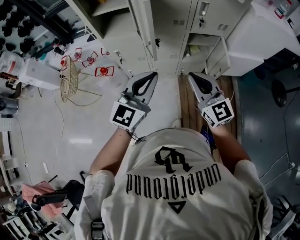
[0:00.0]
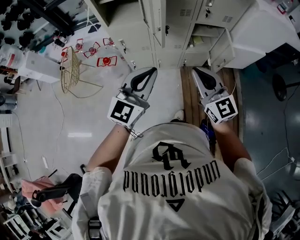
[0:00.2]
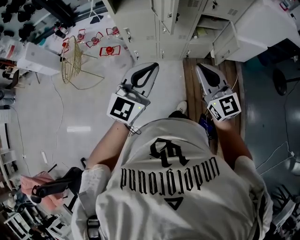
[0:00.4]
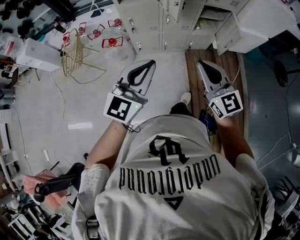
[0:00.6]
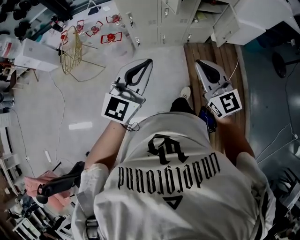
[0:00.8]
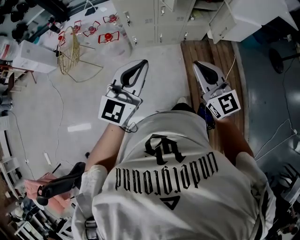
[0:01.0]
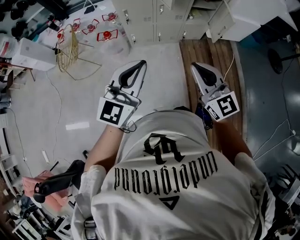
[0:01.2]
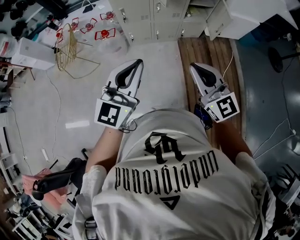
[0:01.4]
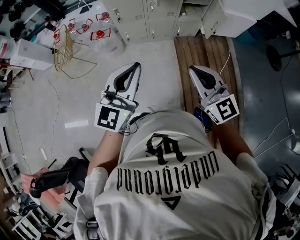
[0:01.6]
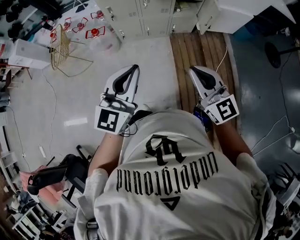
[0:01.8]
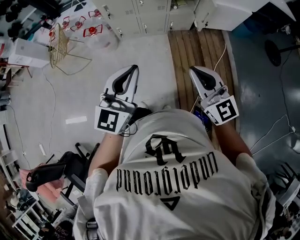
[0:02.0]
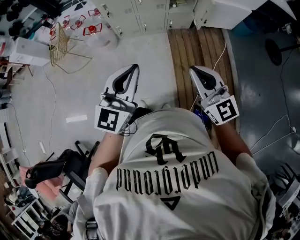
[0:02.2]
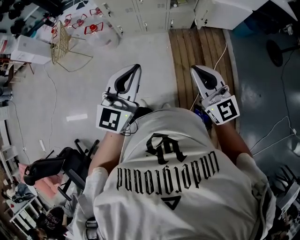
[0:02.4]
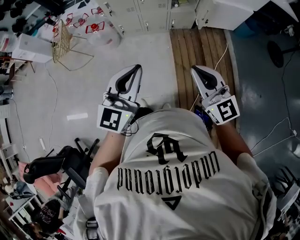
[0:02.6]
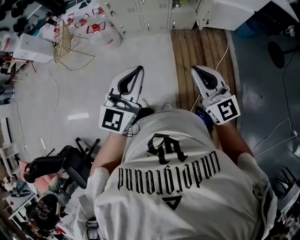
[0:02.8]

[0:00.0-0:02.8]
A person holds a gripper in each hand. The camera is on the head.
0:00.0 to 0:01.4: The two grippers go approximately 30 cm backward and to the left.
0:01.4 to 0:02.8: The two grippers go roughly 20 cm to the right and backward.

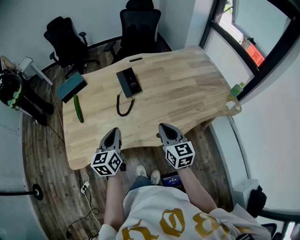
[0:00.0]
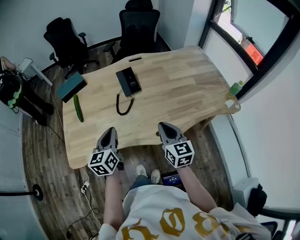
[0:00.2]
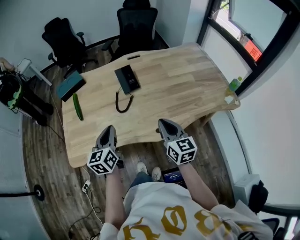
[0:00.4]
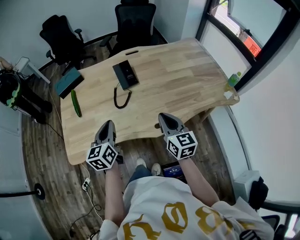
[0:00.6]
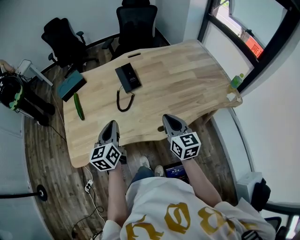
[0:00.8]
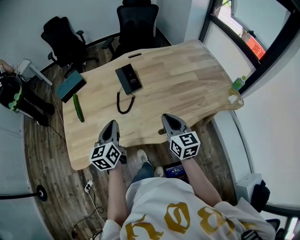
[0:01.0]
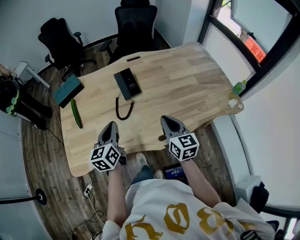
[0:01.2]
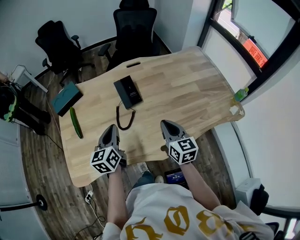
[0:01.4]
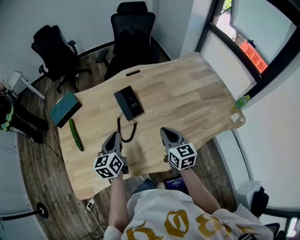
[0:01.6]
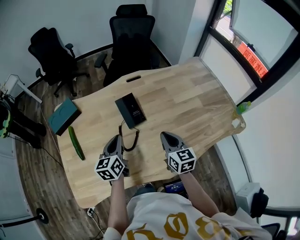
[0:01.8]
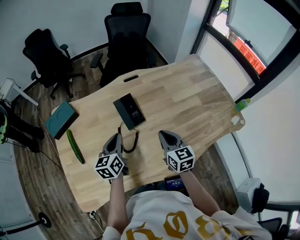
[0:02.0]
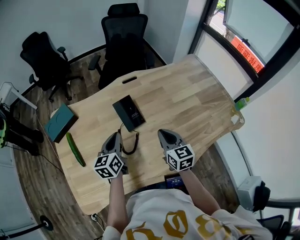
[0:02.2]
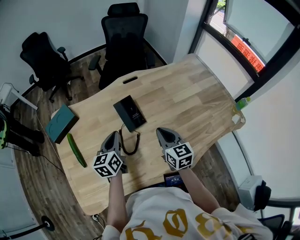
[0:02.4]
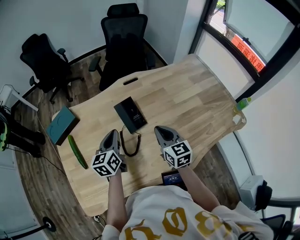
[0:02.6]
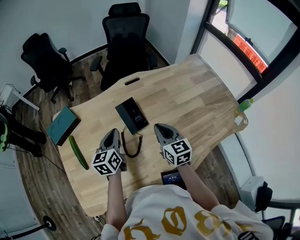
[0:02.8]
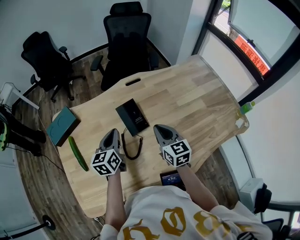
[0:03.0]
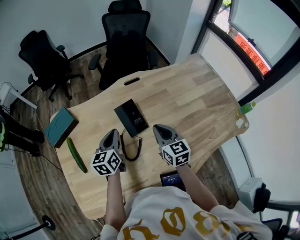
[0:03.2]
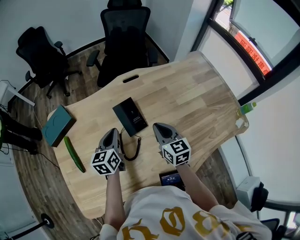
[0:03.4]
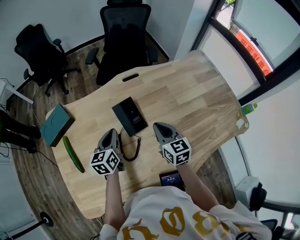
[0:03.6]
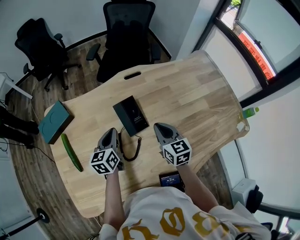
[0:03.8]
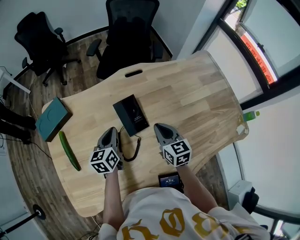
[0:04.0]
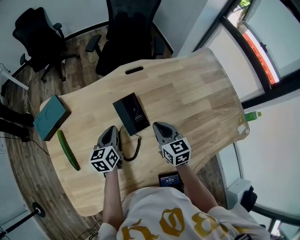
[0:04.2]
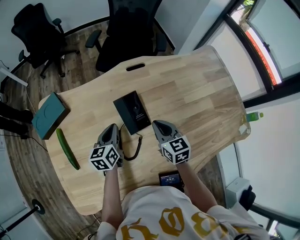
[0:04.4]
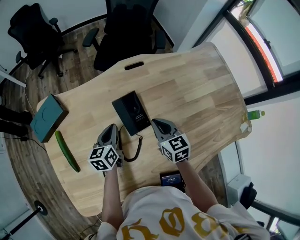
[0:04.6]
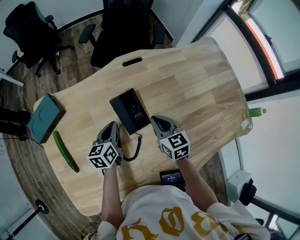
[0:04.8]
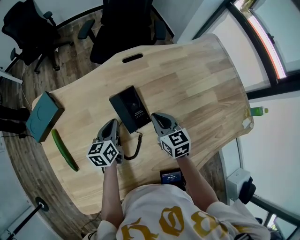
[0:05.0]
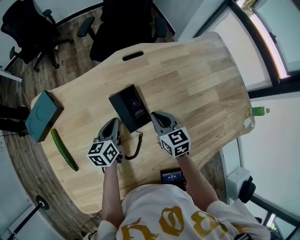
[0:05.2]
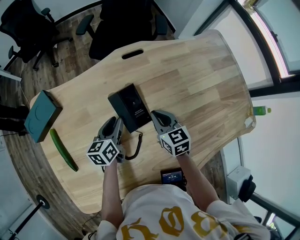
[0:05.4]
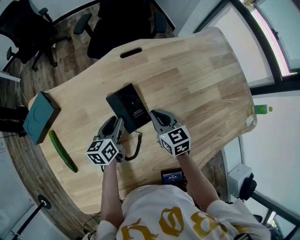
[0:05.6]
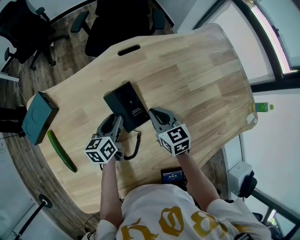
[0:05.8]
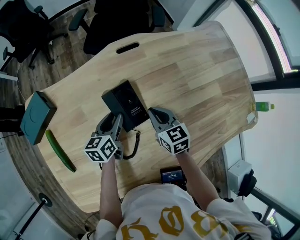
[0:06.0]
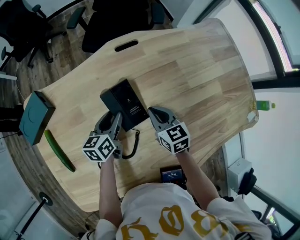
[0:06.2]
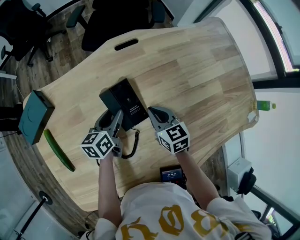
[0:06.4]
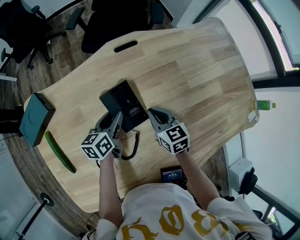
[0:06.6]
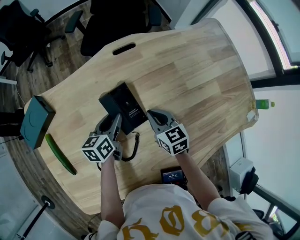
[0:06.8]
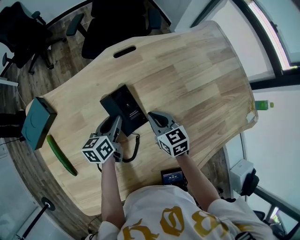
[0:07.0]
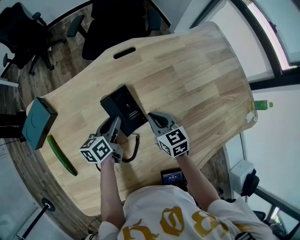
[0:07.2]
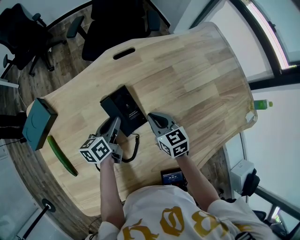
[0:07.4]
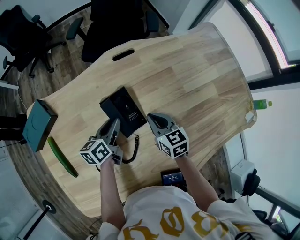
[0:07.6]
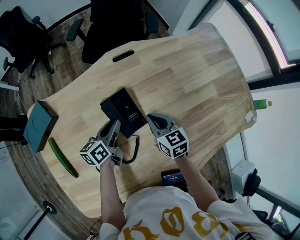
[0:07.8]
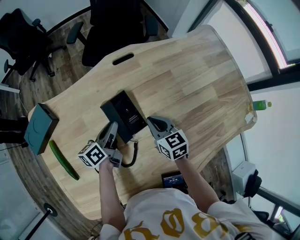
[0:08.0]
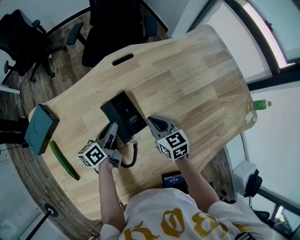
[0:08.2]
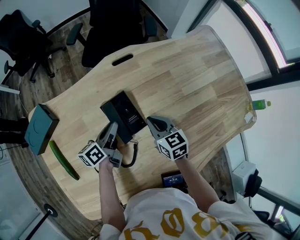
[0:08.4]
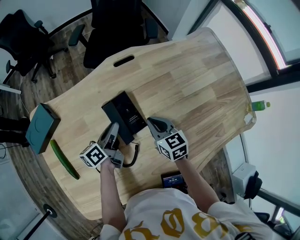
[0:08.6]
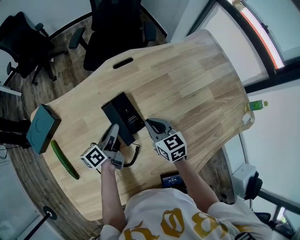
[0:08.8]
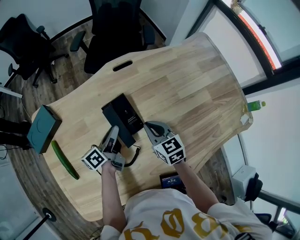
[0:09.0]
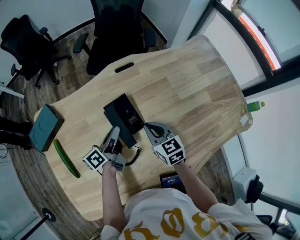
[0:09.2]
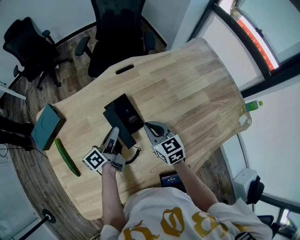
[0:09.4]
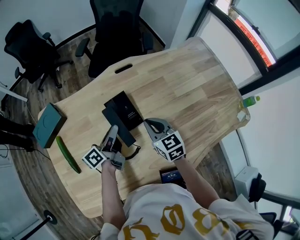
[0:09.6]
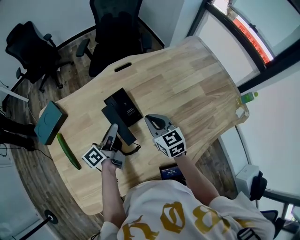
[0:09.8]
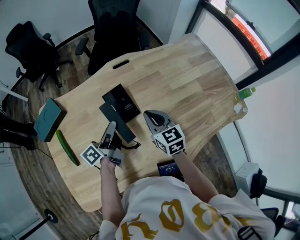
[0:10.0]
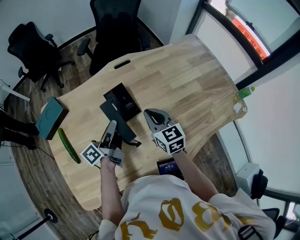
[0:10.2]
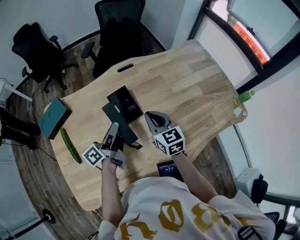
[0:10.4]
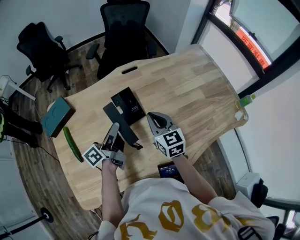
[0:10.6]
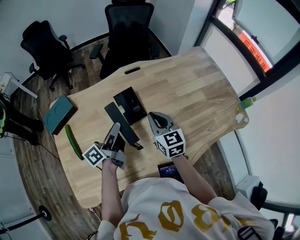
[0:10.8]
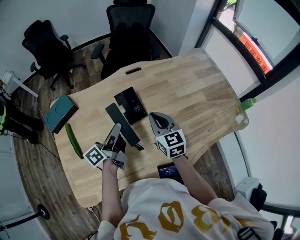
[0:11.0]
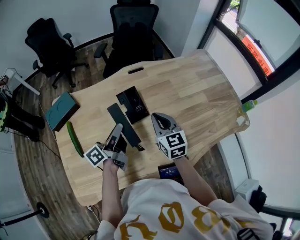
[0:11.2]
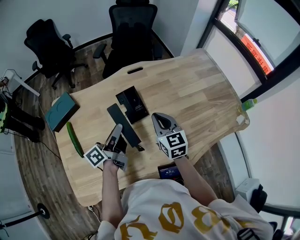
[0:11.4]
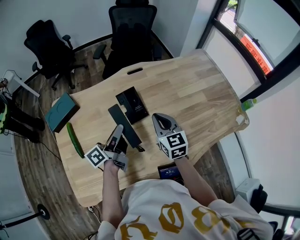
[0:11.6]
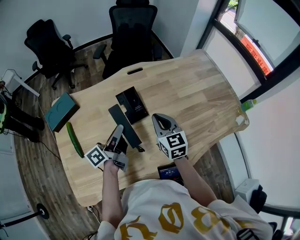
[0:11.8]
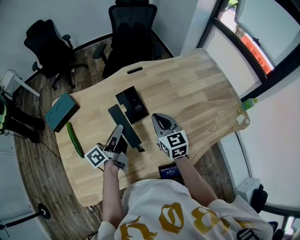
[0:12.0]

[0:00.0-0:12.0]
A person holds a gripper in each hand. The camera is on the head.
0:00.0 to 0:01.6: Both grippers travel together forward, about 15 cm.
0:01.6 to 0:03.0: The two grippers go about 10 cm forward.
0:03.0 to 0:04.4: The grippers both shift downward by roughly 10 cm.
0:04.4 to 0:06.0: Both grippers travel together downward, some 5 cm. The left gripper opens up.
0:06.0 to 0:07.6: There are only small adjustments of the grippers.
0:07.6 to 0:09.0: The left gripper swivels some 20 degrees.
0:09.0 to 0:10.4: The left gripper shifts approximately 10 cm upward and backward, while the right gripper travels upward by about 10 cm.
0:10.4 to 0:12.0: The grippers stay close to where they were, moving slightly.

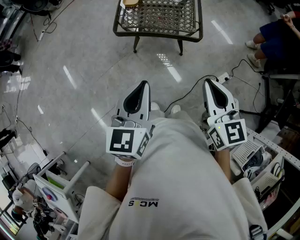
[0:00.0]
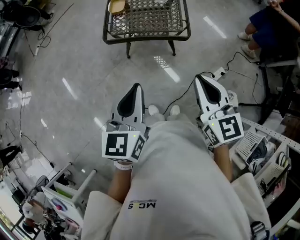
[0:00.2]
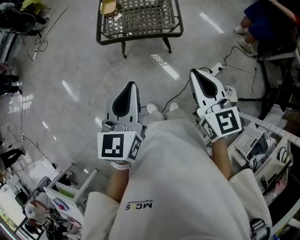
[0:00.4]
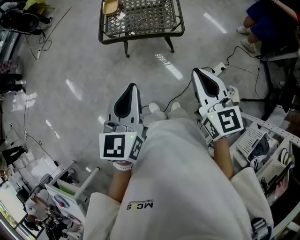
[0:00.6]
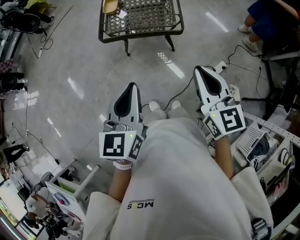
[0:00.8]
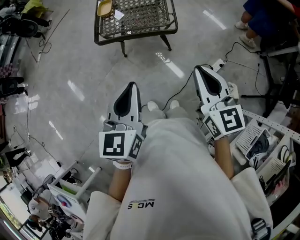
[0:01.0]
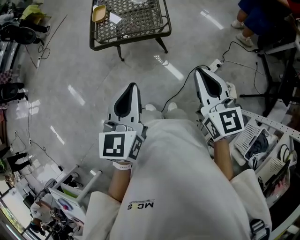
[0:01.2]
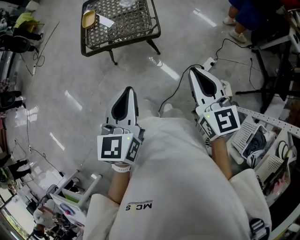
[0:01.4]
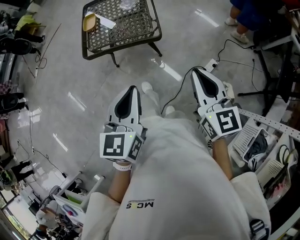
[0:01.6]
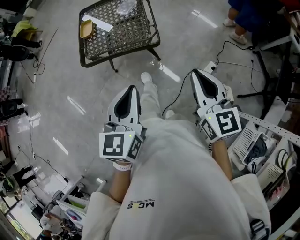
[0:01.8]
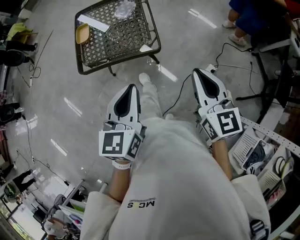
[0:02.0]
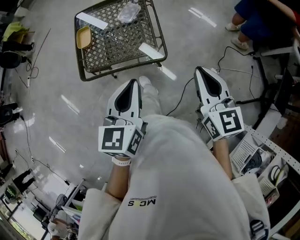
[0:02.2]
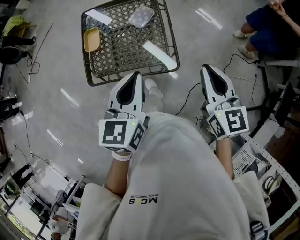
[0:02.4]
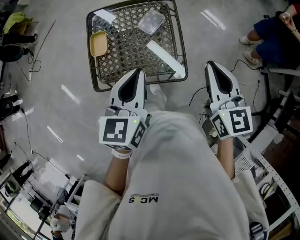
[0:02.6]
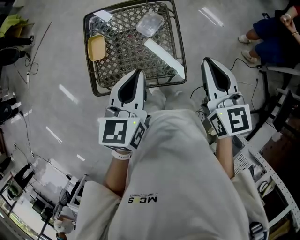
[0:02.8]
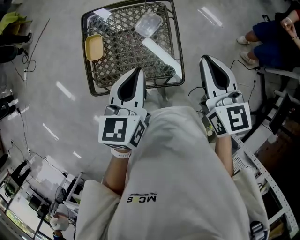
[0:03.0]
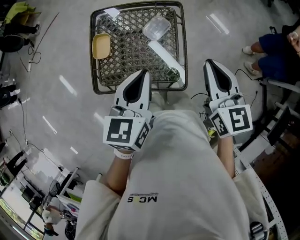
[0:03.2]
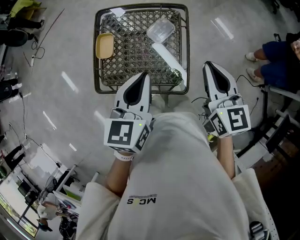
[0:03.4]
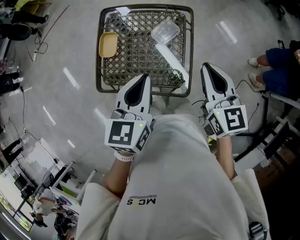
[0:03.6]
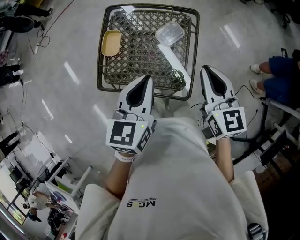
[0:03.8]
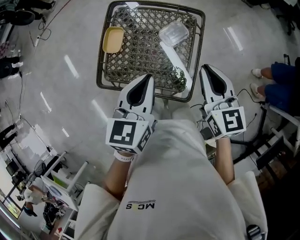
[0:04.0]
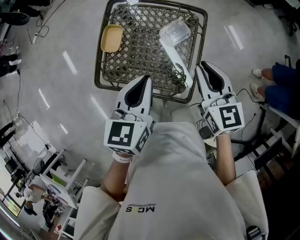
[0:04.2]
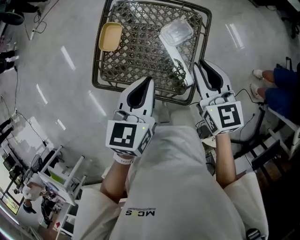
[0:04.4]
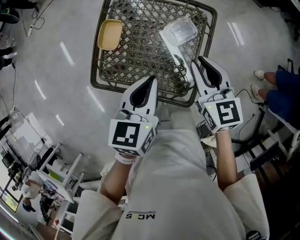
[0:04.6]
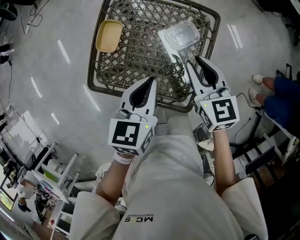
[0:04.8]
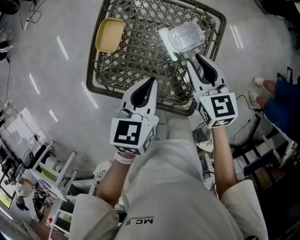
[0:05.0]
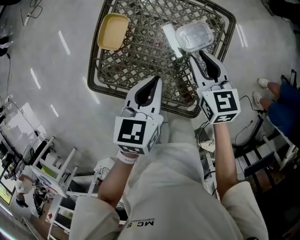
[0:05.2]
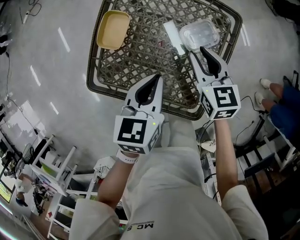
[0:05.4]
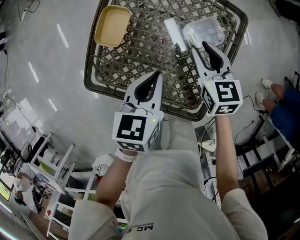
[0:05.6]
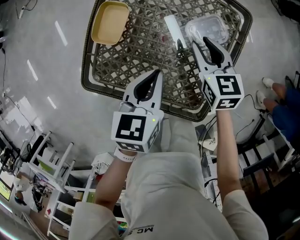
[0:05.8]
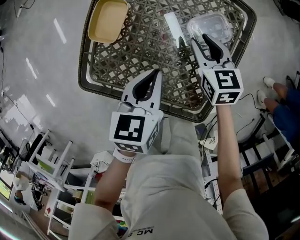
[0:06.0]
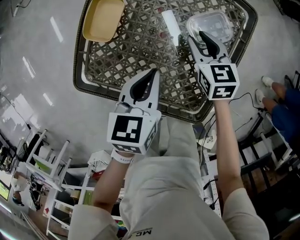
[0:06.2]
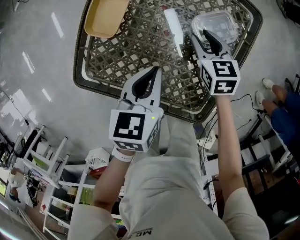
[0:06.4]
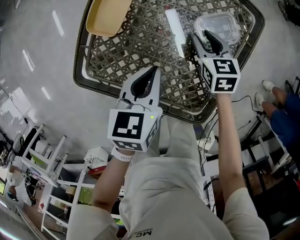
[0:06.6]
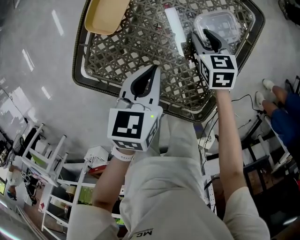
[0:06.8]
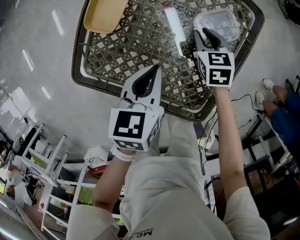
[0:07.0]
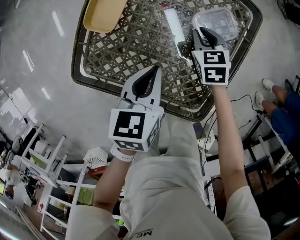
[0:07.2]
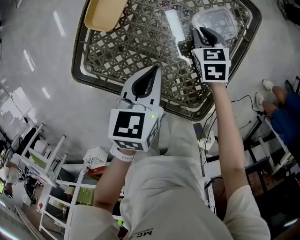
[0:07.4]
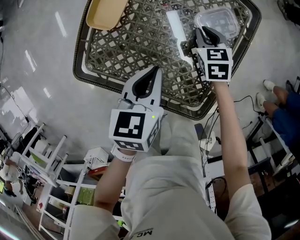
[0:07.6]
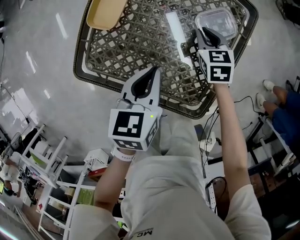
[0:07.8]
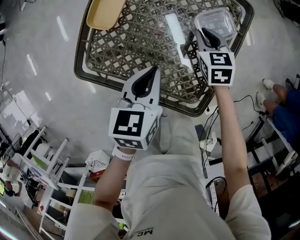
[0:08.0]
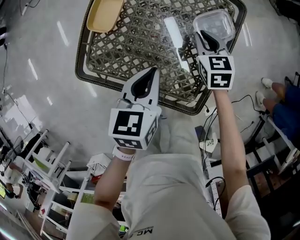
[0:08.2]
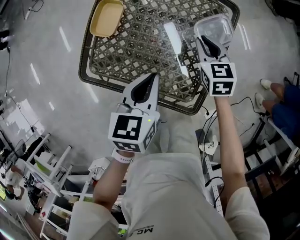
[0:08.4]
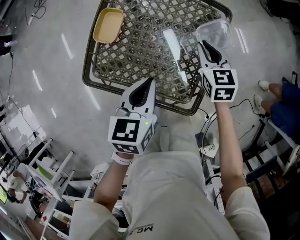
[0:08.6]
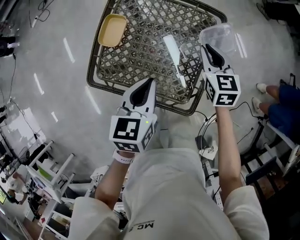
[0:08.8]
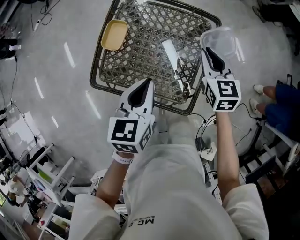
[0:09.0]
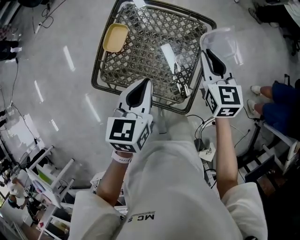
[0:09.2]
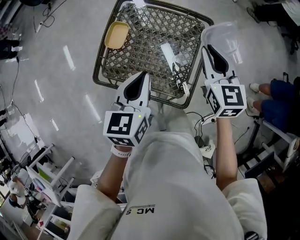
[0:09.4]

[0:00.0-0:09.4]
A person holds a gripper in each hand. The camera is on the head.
0:00.0 to 0:01.6: The two grippers go some 20 cm to the right.
0:01.6 to 0:03.2: The two grippers travel together, forward, about 50 cm.
0:03.2 to 0:04.8: The left gripper goes some 15 cm downward and forward; the right gripper moves downward, forward and to the left, roughly 25 cm, changes its angle by approximately 20 degrees, and opens up.
0:04.8 to 0:06.2: Both grippers move downward, about 20 cm.
0:06.2 to 0:07.8: The grippers stay close to where they were, moving slightly.
0:07.8 to 0:09.4: The left gripper heads upward, covering some 25 cm, while the right gripper is displaced upward by some 35 cm, and swivels roughly 30 degrees.
